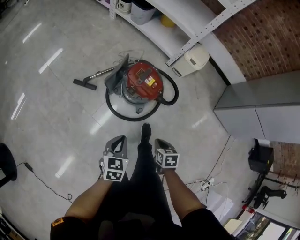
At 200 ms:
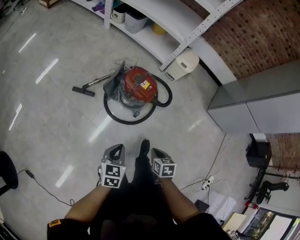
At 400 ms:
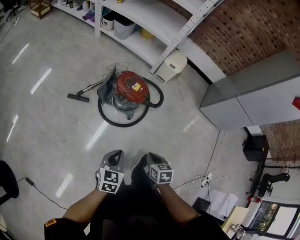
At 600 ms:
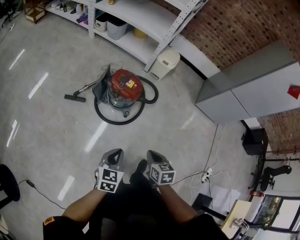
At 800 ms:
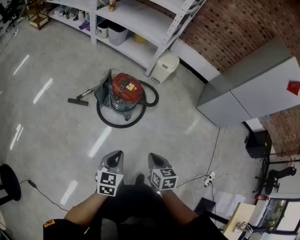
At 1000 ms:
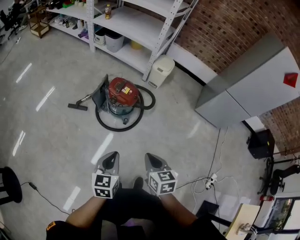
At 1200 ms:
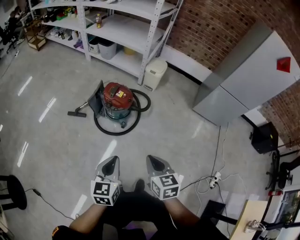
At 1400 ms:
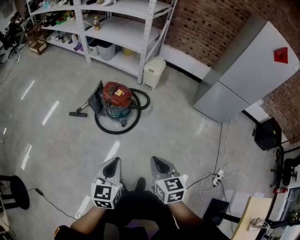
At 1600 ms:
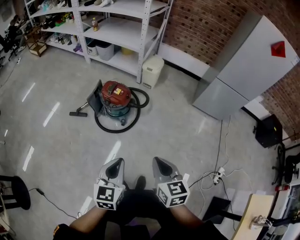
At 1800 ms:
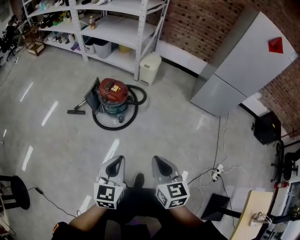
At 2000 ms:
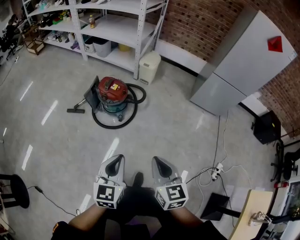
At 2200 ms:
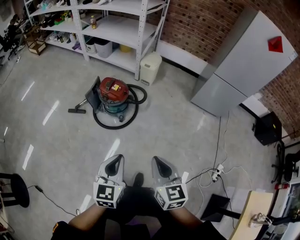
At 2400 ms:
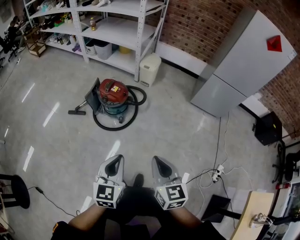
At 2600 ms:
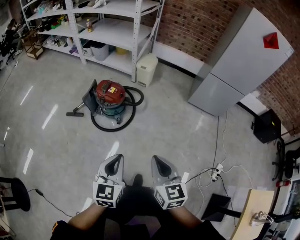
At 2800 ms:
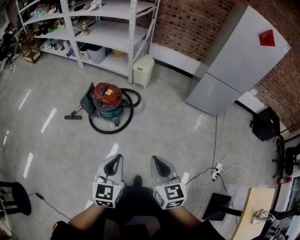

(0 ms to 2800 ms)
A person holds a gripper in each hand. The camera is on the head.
0 ms - 1400 ms: The right gripper travels upward and backward by roughly 40 cm, and tips its fingers upward by about 30 degrees, while the left gripper travels upward, backward and to the right by some 35 cm.
1400 ms - 2800 ms: The right gripper travels to the right and backward by roughly 10 cm, while the left gripper shifts about 5 cm to the right.

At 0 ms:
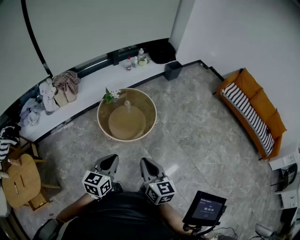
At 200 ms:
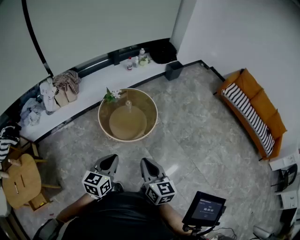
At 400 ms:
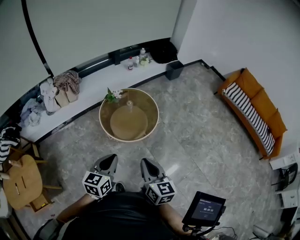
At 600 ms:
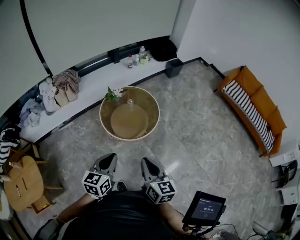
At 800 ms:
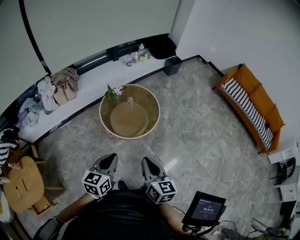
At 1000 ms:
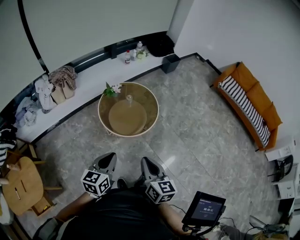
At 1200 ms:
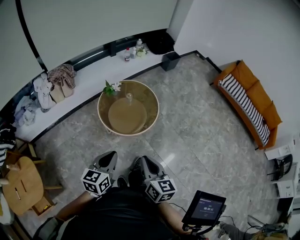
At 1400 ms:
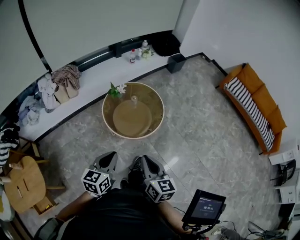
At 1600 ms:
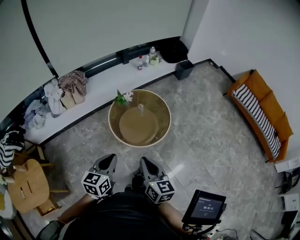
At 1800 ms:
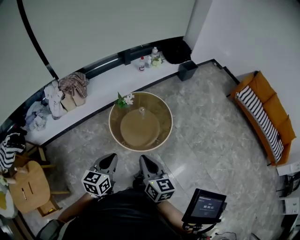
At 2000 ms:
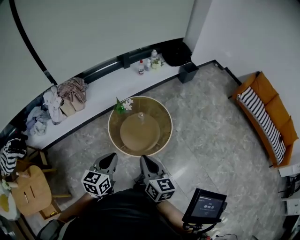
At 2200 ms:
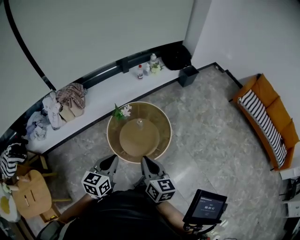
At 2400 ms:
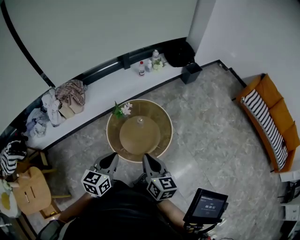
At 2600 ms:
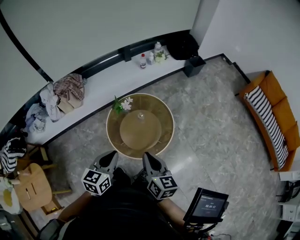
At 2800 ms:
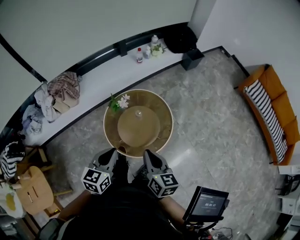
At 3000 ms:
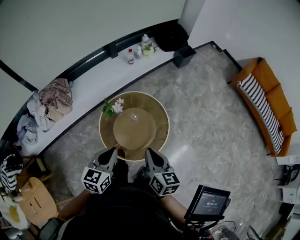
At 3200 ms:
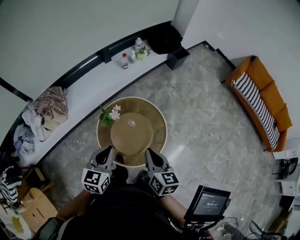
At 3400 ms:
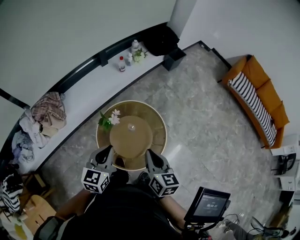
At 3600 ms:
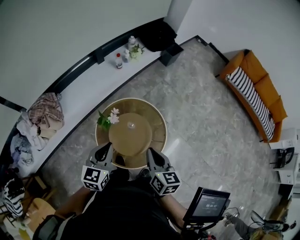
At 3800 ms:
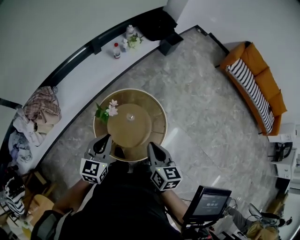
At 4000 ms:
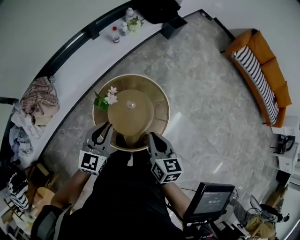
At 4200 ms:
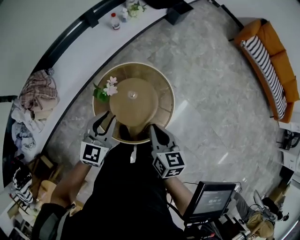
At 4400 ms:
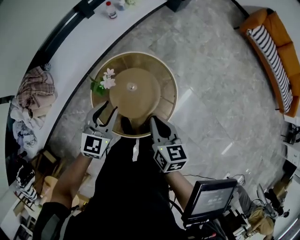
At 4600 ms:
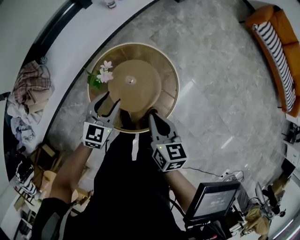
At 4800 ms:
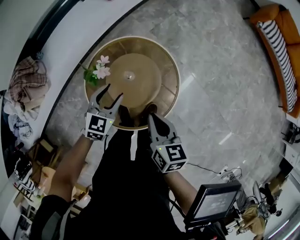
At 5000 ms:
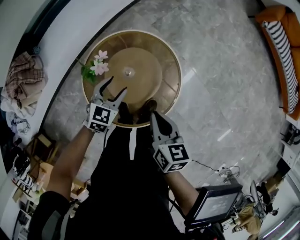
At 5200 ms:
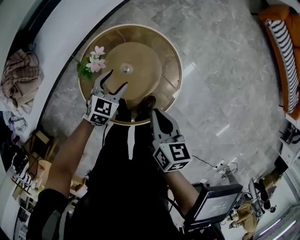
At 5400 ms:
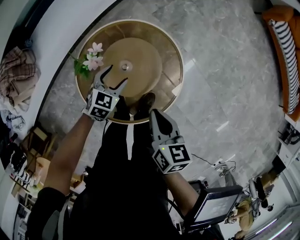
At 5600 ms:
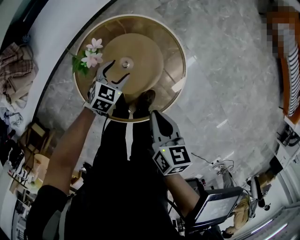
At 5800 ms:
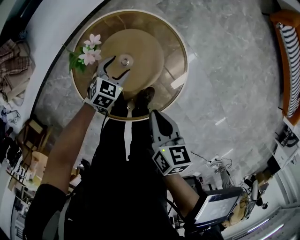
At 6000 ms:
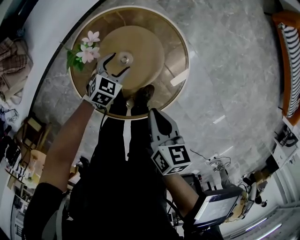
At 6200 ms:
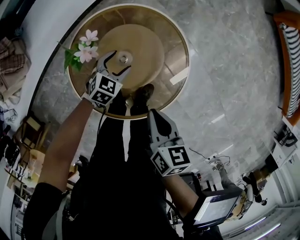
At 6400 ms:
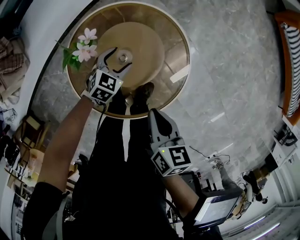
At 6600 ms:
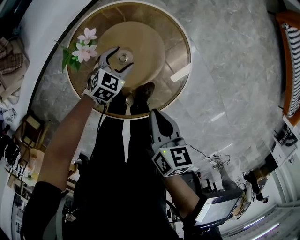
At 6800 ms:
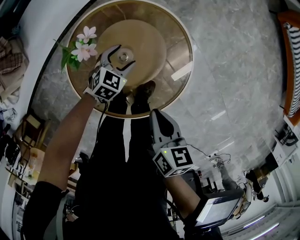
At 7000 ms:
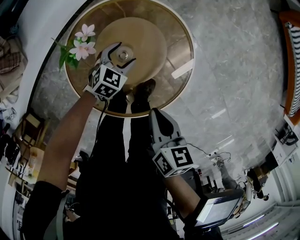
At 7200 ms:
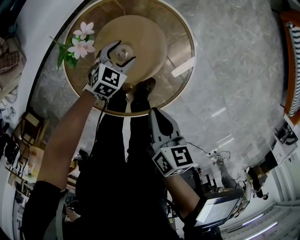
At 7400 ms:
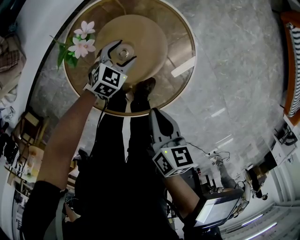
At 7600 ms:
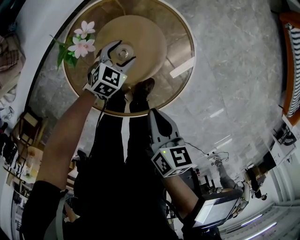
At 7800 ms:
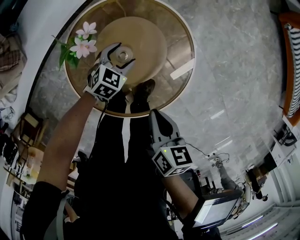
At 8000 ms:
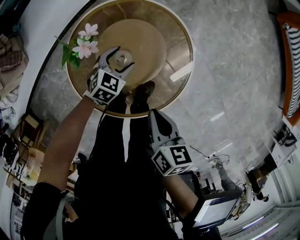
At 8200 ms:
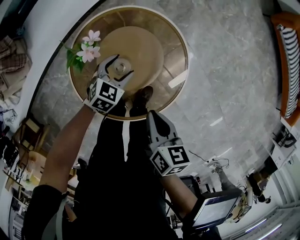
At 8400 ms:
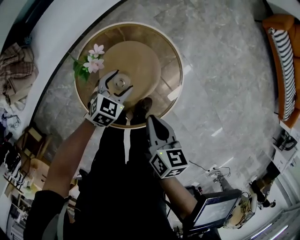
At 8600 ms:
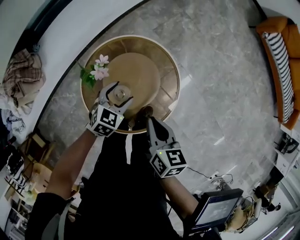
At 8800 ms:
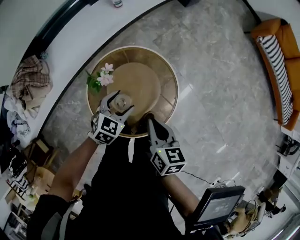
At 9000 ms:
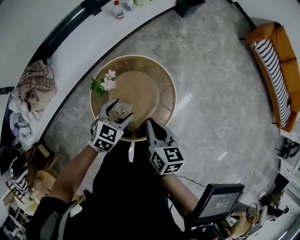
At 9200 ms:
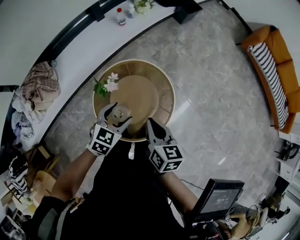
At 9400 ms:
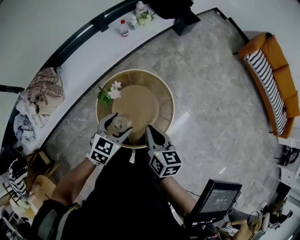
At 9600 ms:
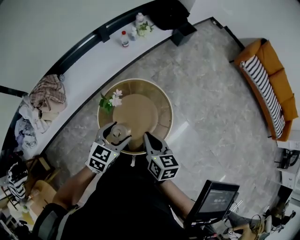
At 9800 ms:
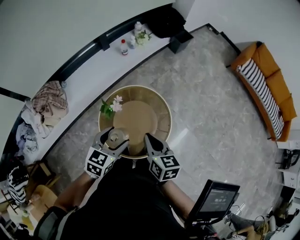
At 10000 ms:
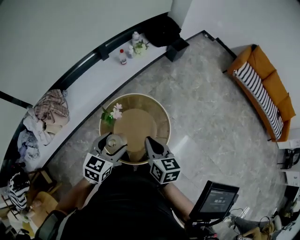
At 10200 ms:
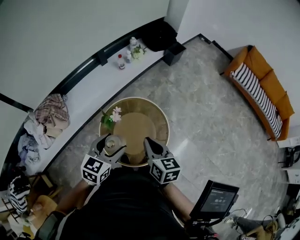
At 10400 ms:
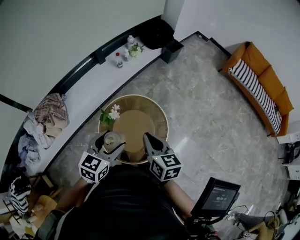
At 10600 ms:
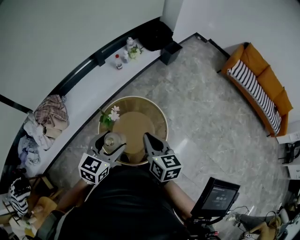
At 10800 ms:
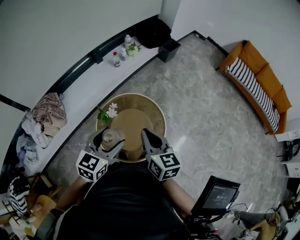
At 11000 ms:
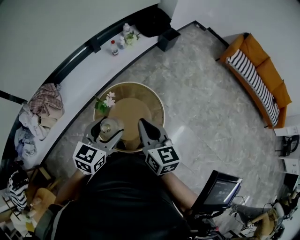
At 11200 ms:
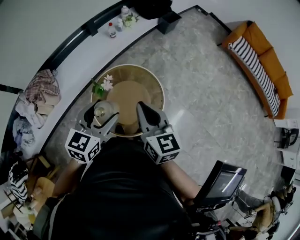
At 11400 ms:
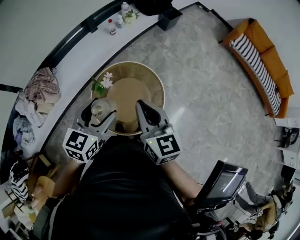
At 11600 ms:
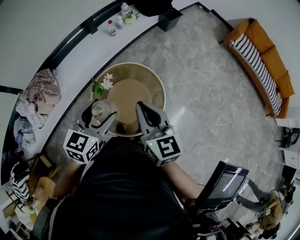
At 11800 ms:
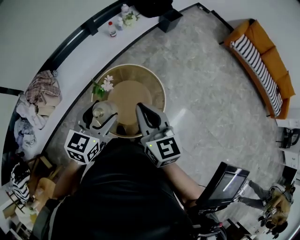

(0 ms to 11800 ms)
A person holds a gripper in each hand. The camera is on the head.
0 ms - 1400 ms: The two grippers go about 10 cm to the left.
1400 ms - 3000 ms: The grippers both shift forward by about 30 cm.
3000 ms - 4400 ms: The right gripper is displaced downward and forward by approximately 15 cm, while the left gripper heads forward and downward, covering approximately 20 cm, swivels approximately 20 degrees, and opens up.
4400 ms - 6000 ms: The left gripper goes roughly 35 cm downward, rotates roughly 30 degrees, and opens. Meanwhile the right gripper shifts some 15 cm downward.
6000 ms - 7400 ms: The grippers make only small movements.
7400 ms - 8800 ms: The right gripper is displaced upward by roughly 15 cm. The left gripper travels upward by some 25 cm.
8800 ms - 10400 ms: The left gripper goes roughly 30 cm upward and backward; the right gripper goes approximately 20 cm upward.
10400 ms - 11800 ms: The right gripper is displaced upward by approximately 5 cm.

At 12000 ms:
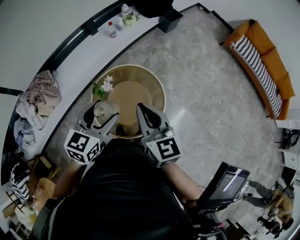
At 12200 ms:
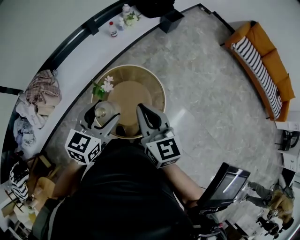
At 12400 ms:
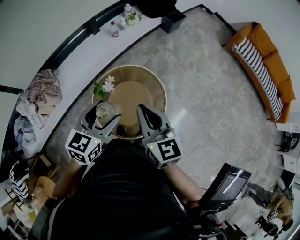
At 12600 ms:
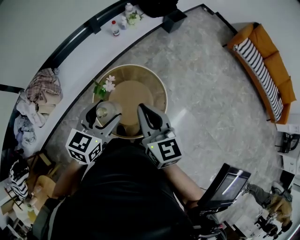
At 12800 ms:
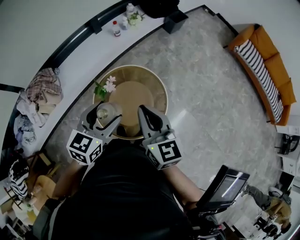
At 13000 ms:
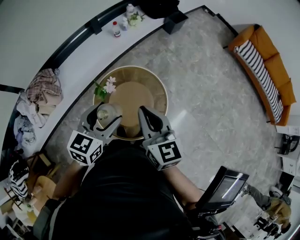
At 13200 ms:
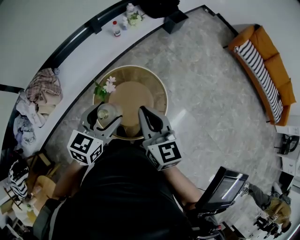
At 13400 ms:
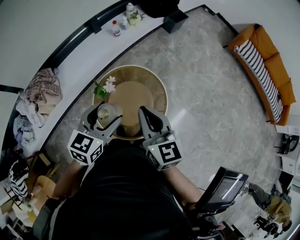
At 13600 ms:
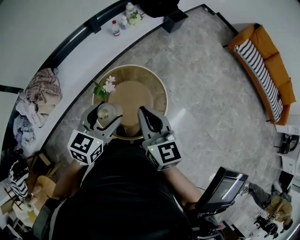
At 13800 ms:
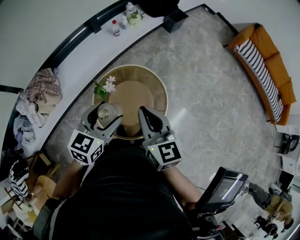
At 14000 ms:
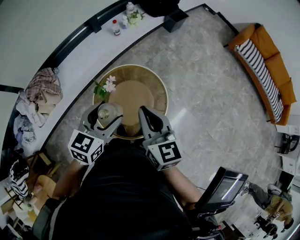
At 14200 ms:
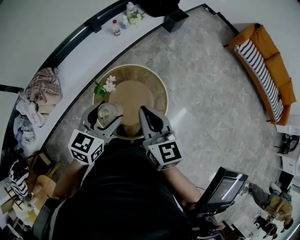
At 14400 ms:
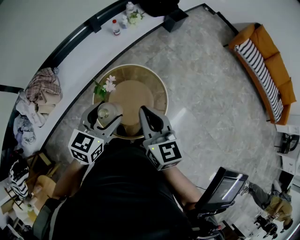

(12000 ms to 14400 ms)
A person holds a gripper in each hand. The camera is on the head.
12000 ms - 13200 ms: The grippers move only a little.
13200 ms - 14400 ms: Both grippers stay put.

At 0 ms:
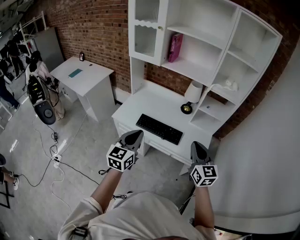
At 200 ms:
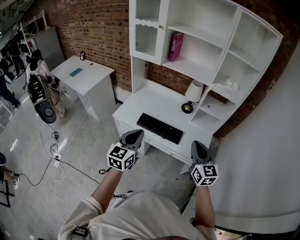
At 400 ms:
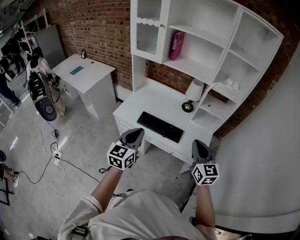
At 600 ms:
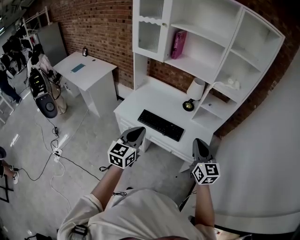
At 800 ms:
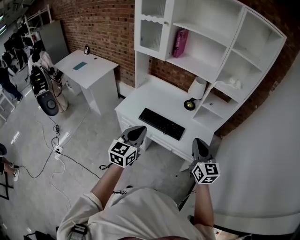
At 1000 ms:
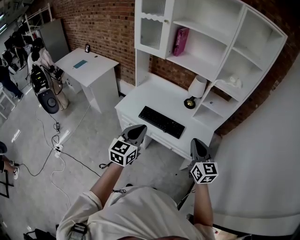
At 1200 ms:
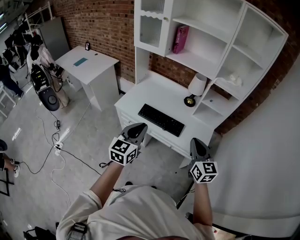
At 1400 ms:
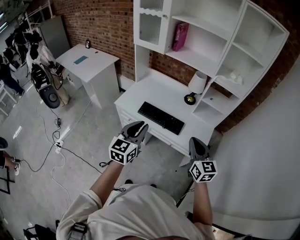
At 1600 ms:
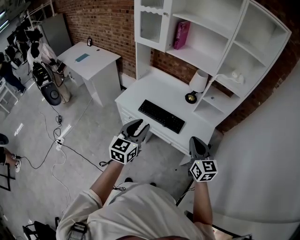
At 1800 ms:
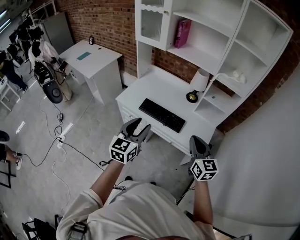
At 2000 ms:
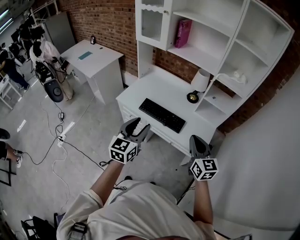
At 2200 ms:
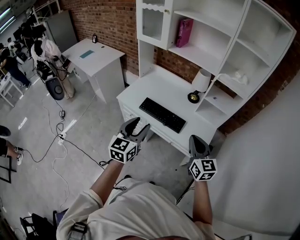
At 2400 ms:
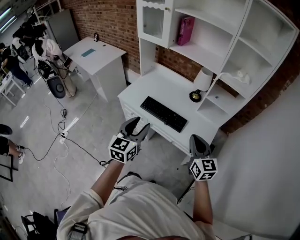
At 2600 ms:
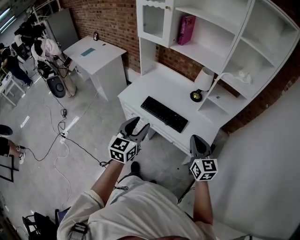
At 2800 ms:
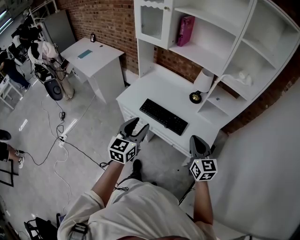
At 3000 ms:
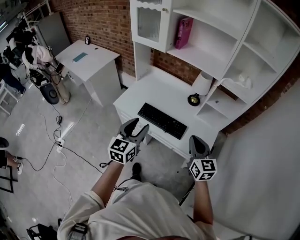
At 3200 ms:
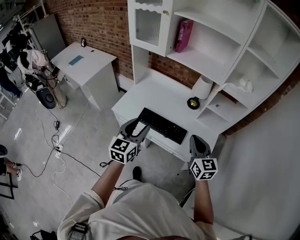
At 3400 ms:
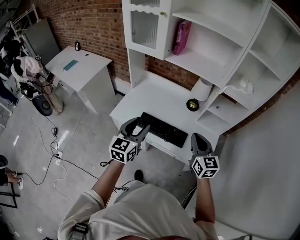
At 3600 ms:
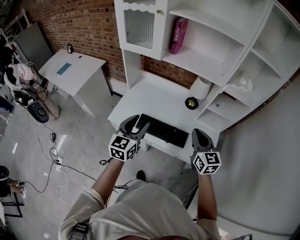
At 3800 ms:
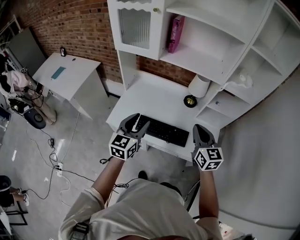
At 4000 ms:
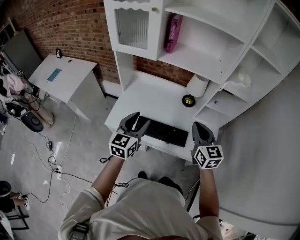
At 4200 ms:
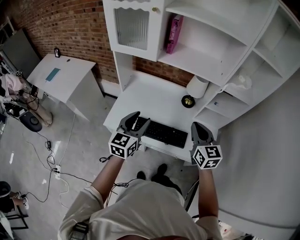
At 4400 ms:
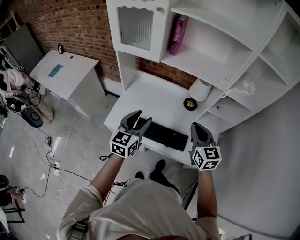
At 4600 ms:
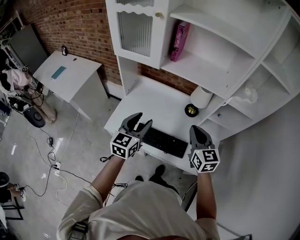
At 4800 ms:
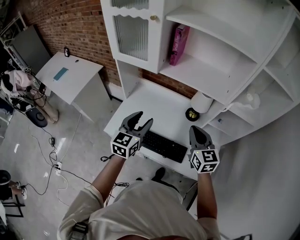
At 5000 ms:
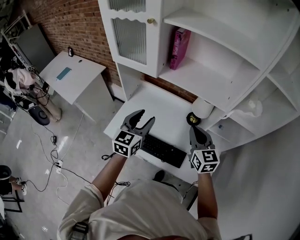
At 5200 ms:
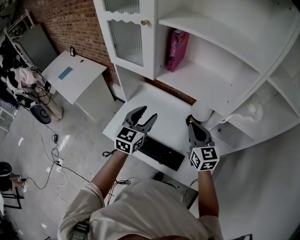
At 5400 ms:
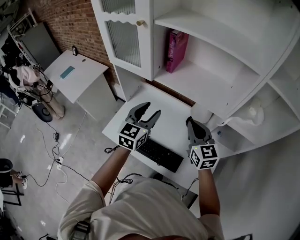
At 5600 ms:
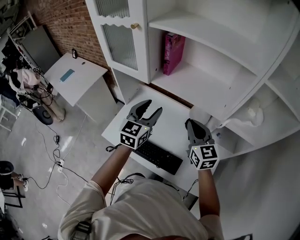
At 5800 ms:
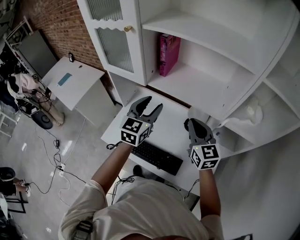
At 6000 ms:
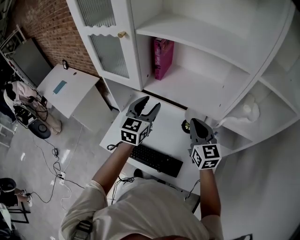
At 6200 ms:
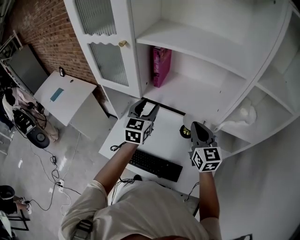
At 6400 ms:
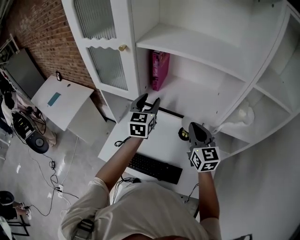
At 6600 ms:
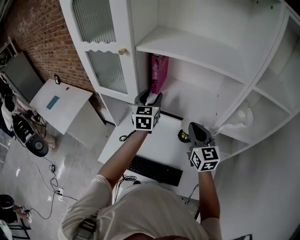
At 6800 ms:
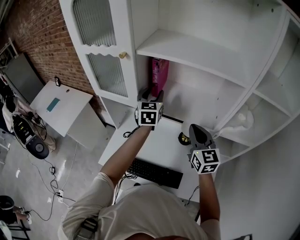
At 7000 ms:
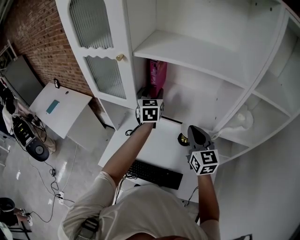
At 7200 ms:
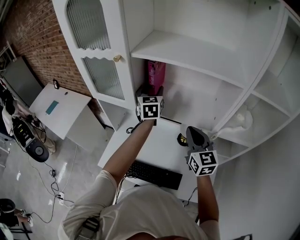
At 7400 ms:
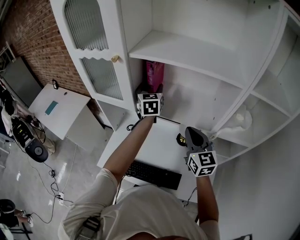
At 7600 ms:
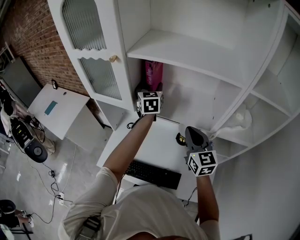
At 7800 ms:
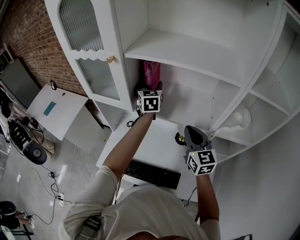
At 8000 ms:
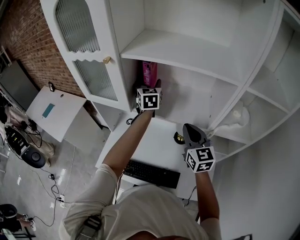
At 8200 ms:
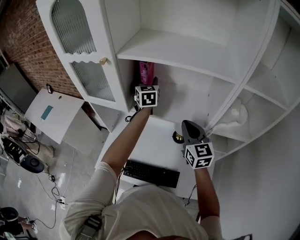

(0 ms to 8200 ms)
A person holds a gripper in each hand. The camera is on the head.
0 ms - 1600 ms: The left gripper shifts by roughly 5 cm, and opens its fingers.
1600 ms - 3200 ms: The grippers both shift forward by approximately 15 cm.
3200 ms - 5000 ms: The grippers both shift forward by roughly 25 cm.
5000 ms - 6600 ms: The left gripper goes some 25 cm forward; the right gripper heads forward and upward, covering some 10 cm.
6600 ms - 8200 ms: The left gripper goes about 10 cm forward.
